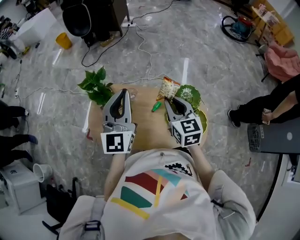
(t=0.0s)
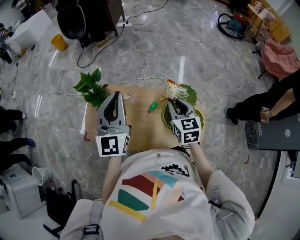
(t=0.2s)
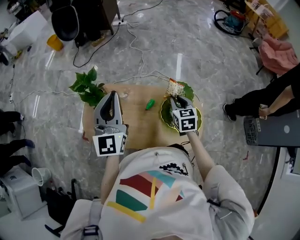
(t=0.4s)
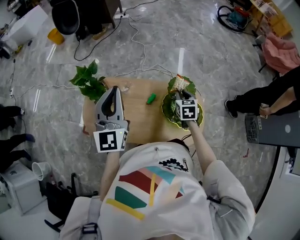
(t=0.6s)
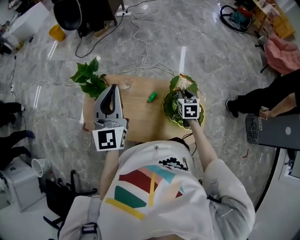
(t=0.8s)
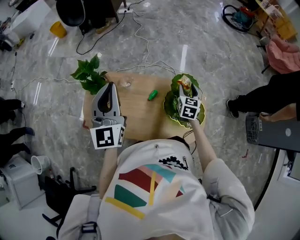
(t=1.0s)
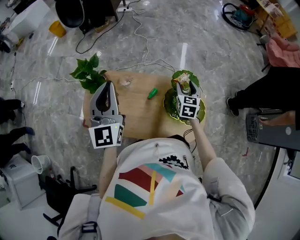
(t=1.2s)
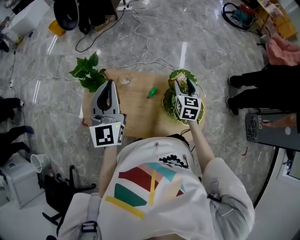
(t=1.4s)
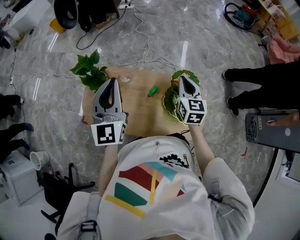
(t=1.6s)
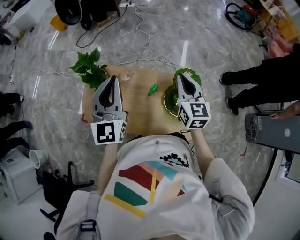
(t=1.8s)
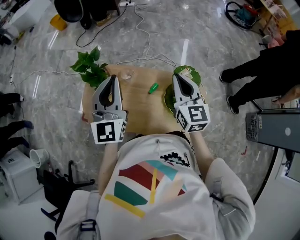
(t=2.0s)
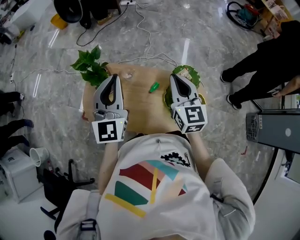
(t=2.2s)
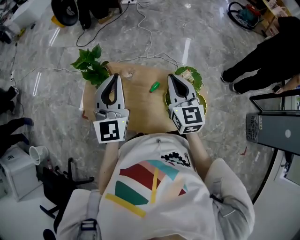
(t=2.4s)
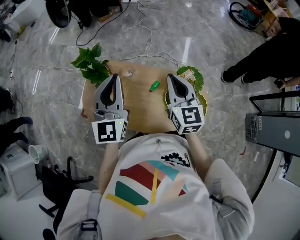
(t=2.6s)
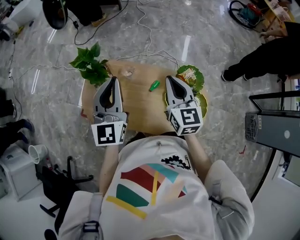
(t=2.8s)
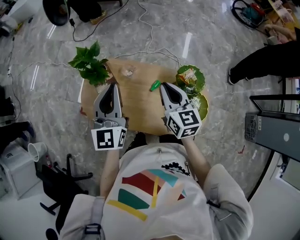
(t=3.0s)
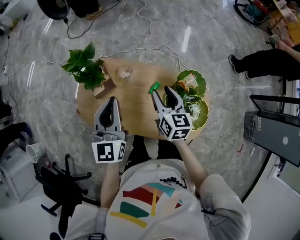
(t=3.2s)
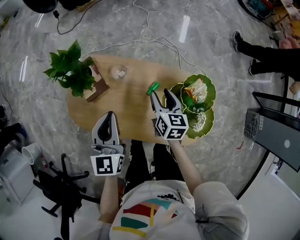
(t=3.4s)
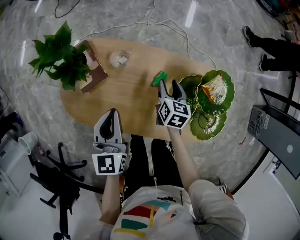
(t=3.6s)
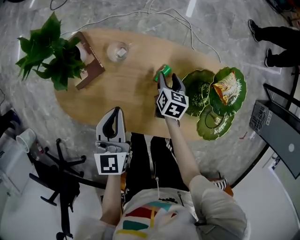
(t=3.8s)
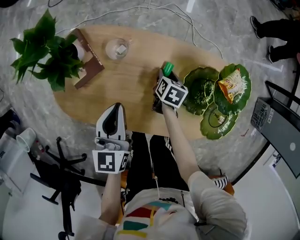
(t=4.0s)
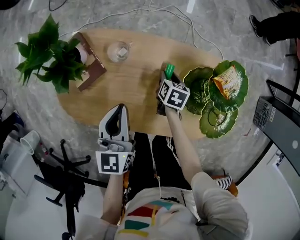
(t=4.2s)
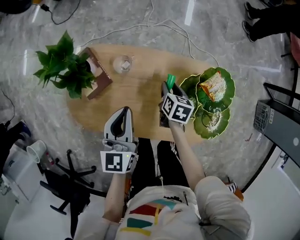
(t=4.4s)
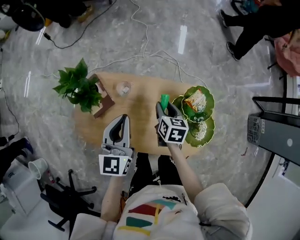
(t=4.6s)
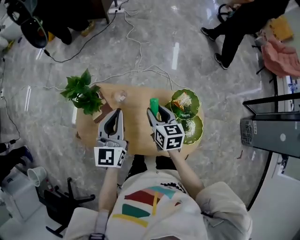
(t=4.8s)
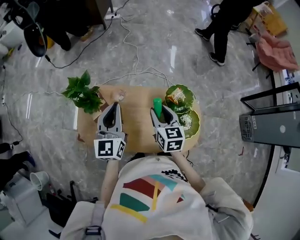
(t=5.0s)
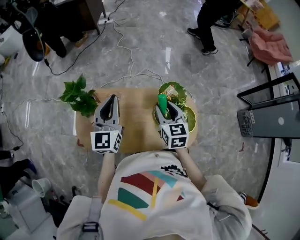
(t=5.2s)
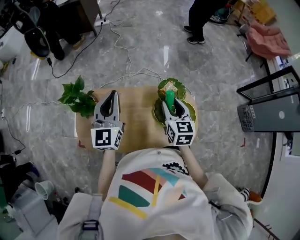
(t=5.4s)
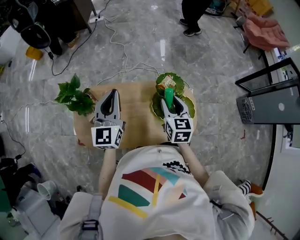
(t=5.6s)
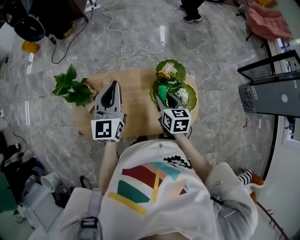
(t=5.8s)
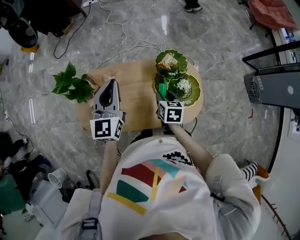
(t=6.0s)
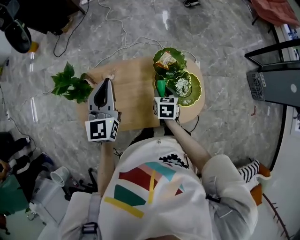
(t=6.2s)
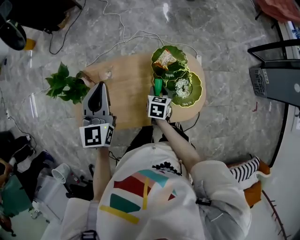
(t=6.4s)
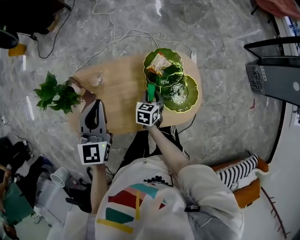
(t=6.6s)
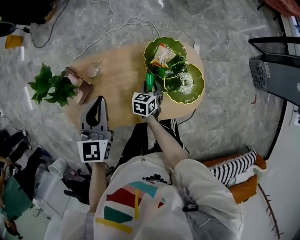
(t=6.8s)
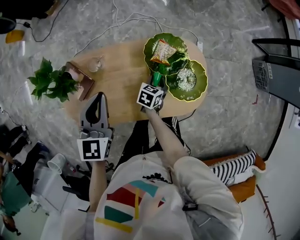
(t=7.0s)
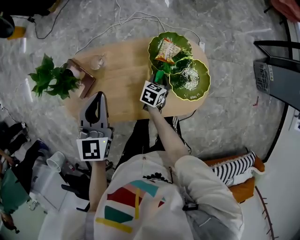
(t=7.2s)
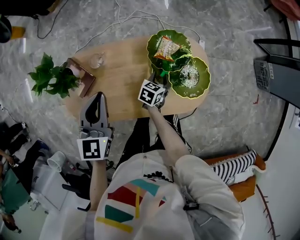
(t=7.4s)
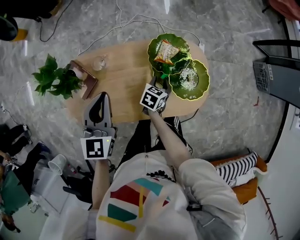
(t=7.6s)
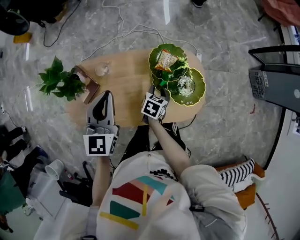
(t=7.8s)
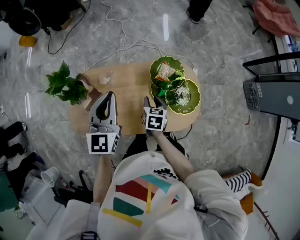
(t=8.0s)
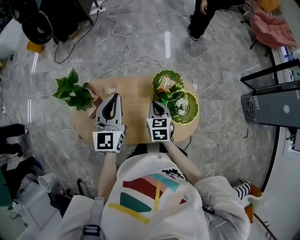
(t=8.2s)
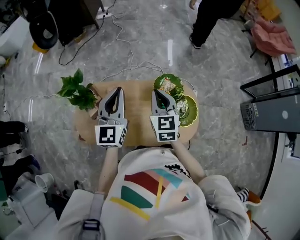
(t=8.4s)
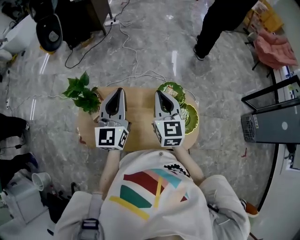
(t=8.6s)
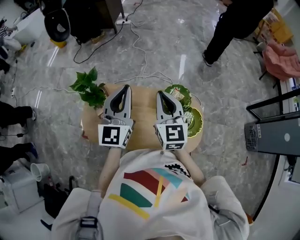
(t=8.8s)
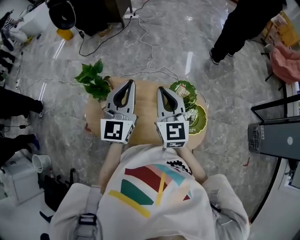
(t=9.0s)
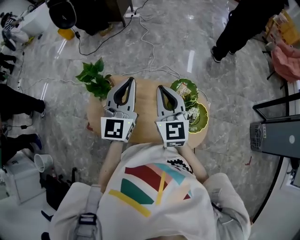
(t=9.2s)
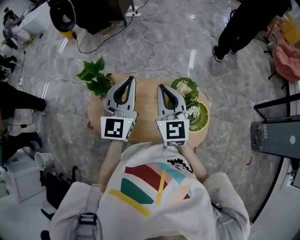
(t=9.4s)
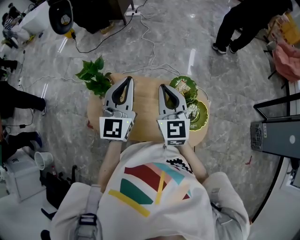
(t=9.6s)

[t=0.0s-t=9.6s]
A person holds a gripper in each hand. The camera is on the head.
t=0.0s to t=1.6s: The right gripper heads to the right and forward, covering approximately 10 cm, reaches approximately 20 cm downward, then returns, and opens, then closes again.
t=1.6s to t=3.2s: The left gripper moves downward, some 10 cm, while the right gripper is displaced to the left and downward by about 15 cm, and opens its fingers.
t=3.2s to t=4.8s: The left gripper reaches some 25 cm downward, then returns. Meanwhile the right gripper reaches some 40 cm downward, then returns.
t=4.8s to t=6.4s: The right gripper heads downward and to the right, covering about 20 cm, and swivels roughly 40 degrees. Meanwhile the left gripper is displaced to the right by some 5 cm.
t=6.4s to t=8.0s: The right gripper travels downward and back again, roughly 10 cm each way, while the left gripper goes downward and returns, about 10 cm each way.
t=8.0s to t=9.6s: The right gripper shifts approximately 30 cm upward, tilts its fingers some 50 degrees upward, and closes. Meanwhile the left gripper travels upward by about 10 cm.

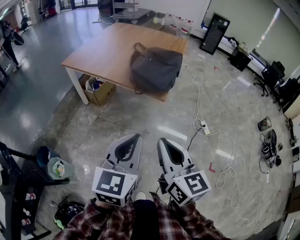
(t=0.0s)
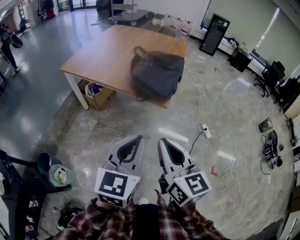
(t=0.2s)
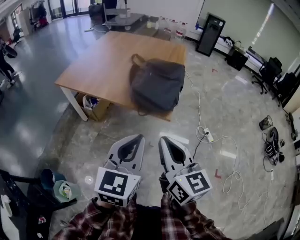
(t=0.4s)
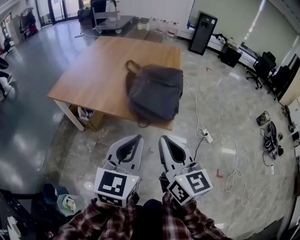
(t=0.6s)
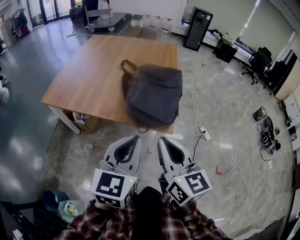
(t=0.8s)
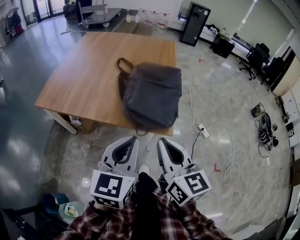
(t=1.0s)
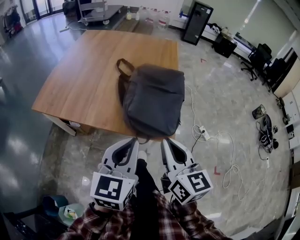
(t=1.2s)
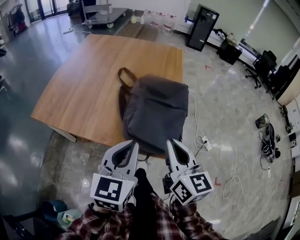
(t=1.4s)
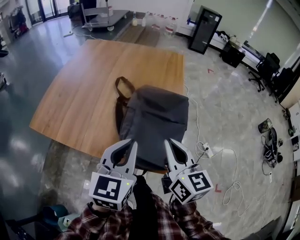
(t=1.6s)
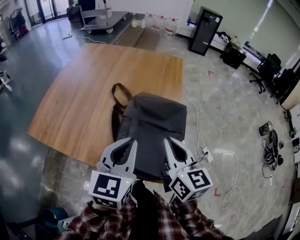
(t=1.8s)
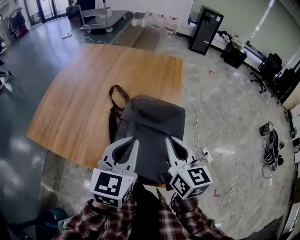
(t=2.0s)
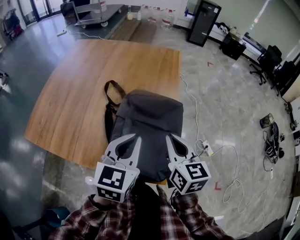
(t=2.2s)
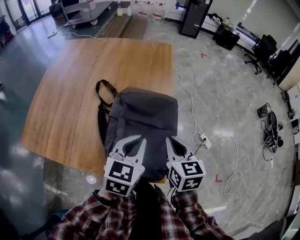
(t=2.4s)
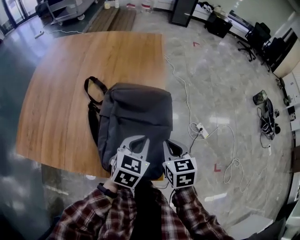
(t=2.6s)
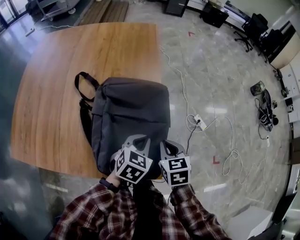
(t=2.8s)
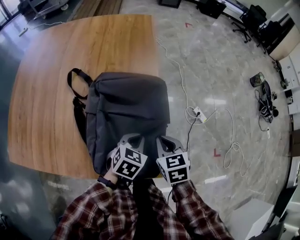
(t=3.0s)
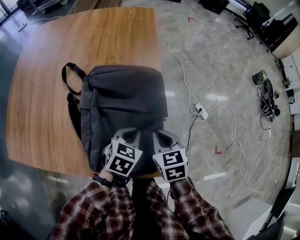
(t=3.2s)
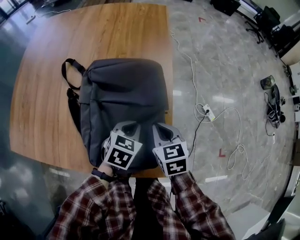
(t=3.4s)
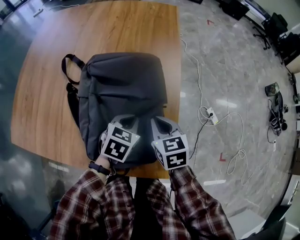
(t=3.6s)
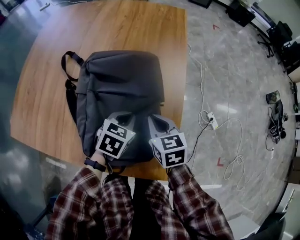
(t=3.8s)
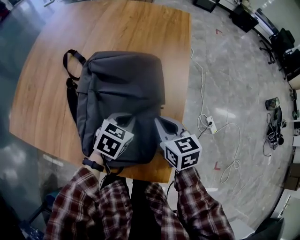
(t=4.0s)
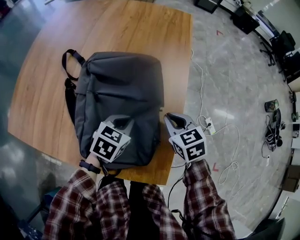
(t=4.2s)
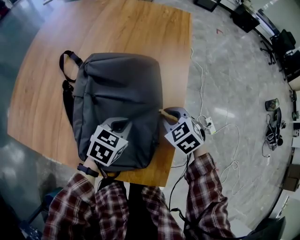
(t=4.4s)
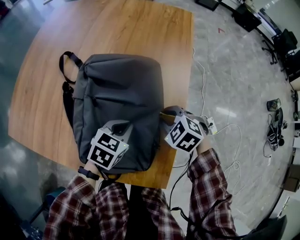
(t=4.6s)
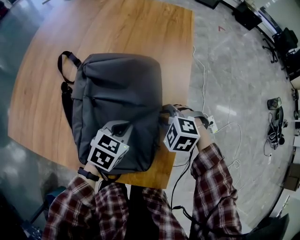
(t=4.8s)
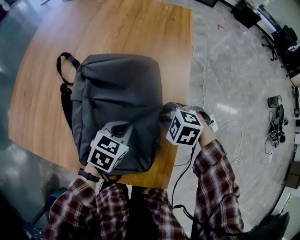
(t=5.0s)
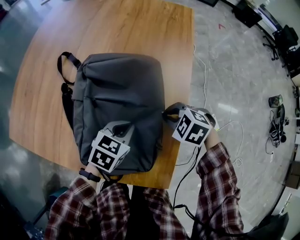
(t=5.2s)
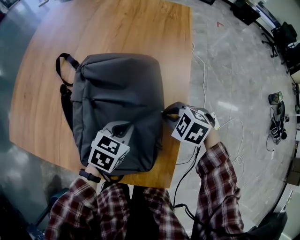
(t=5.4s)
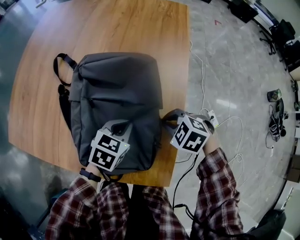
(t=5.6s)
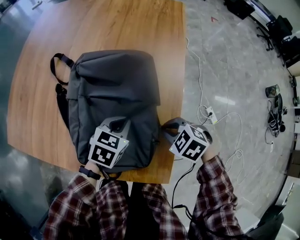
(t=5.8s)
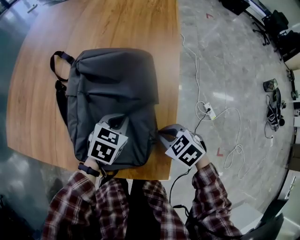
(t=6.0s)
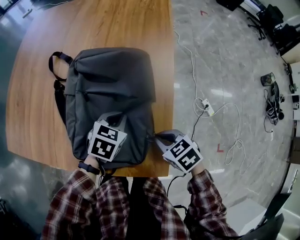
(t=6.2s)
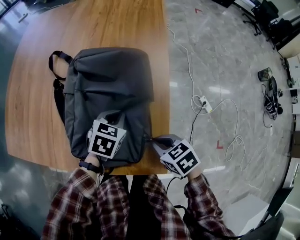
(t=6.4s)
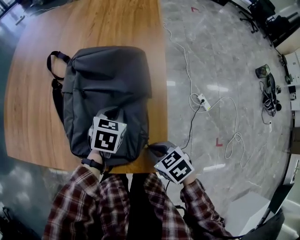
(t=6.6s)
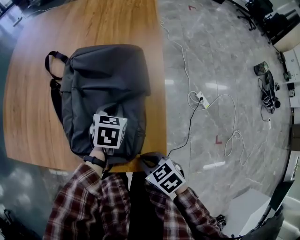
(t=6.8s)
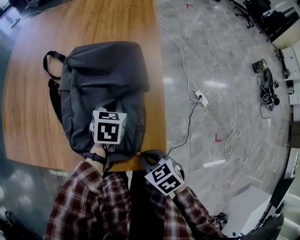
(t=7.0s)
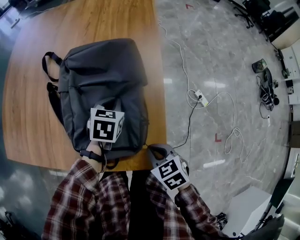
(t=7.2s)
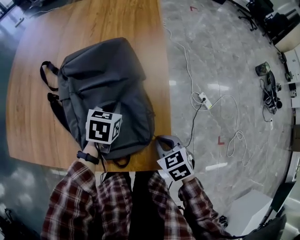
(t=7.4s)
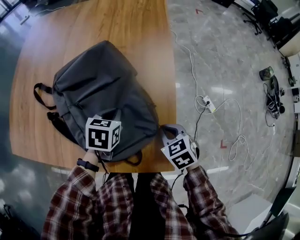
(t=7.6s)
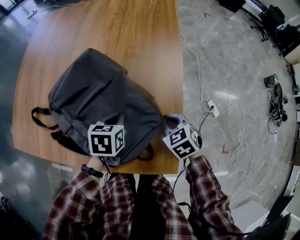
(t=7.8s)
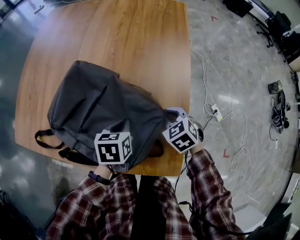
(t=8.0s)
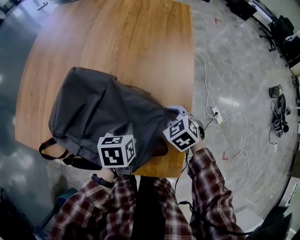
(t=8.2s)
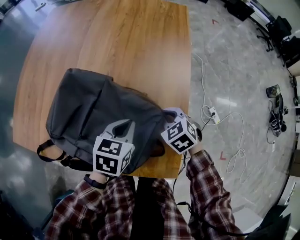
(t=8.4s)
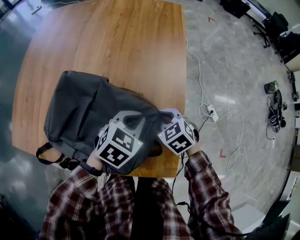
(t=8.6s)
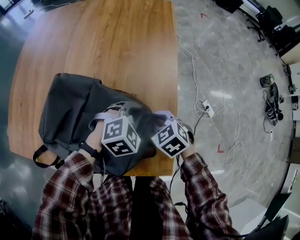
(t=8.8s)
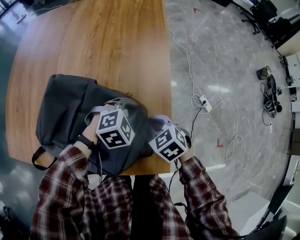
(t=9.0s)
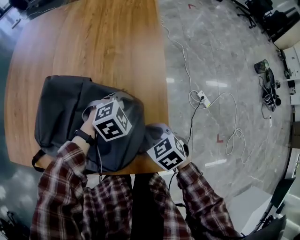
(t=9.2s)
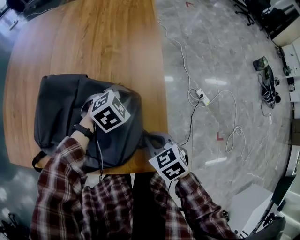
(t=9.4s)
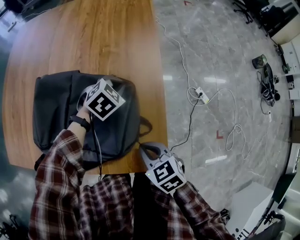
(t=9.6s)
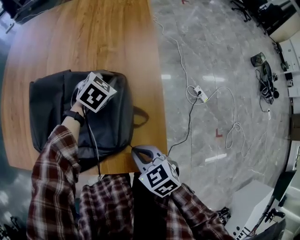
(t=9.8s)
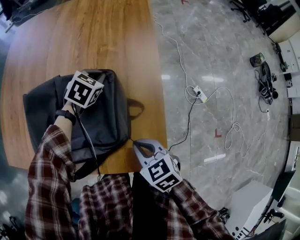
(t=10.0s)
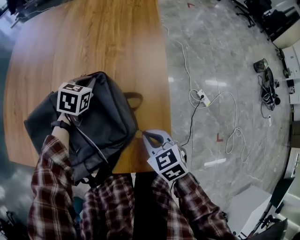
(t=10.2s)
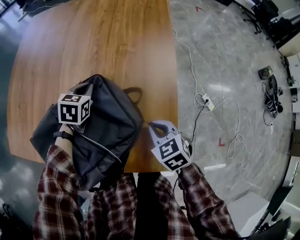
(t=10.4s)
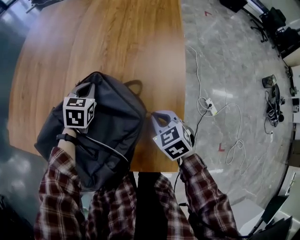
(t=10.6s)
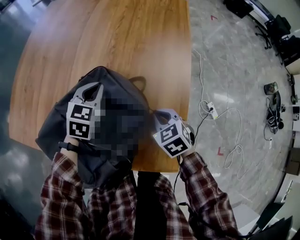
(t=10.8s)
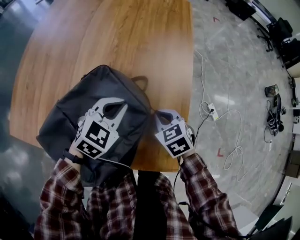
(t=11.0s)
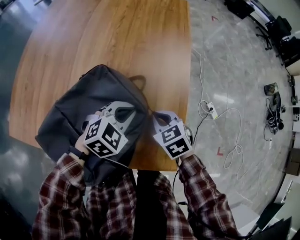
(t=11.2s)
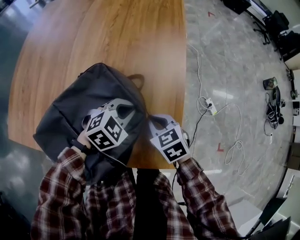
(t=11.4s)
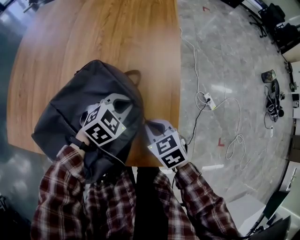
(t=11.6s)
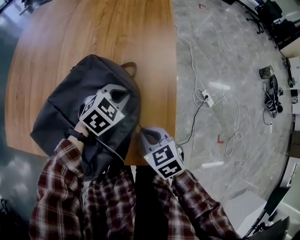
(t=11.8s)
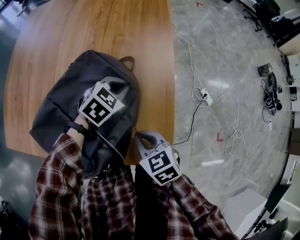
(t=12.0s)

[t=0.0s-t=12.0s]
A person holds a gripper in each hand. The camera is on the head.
t=0.0s to t=1.6s: The pair of grippers is taken forward, approximately 50 cm.
t=1.6s to t=3.0s: The left gripper is displaced downward, to the right and forward by some 35 cm, and tilts its fingers some 30 degrees downward; the right gripper heads downward, forward and to the right, covering some 30 cm, and points its fingers about 40 degrees further downward.
t=3.0s to t=4.4s: The left gripper travels to the left and forward by about 15 cm; the right gripper moves forward and to the left, approximately 15 cm, and turns by about 40 degrees.
t=4.4s to t=6.0s: The right gripper moves backward, approximately 10 cm.
t=6.0s to t=7.6s: The right gripper reaches about 10 cm backward, then returns, and rotates about 20 degrees.
t=7.6s to t=9.0s: The left gripper travels to the right by approximately 10 cm, and rotates around the line of its fingers by about 60 degrees, clockwise from behind.
t=9.0s to t=10.4s: The right gripper travels backward and back again, about 10 cm each way; the left gripper heads to the left and forward, covering about 25 cm, and twists roughly 50 degrees counterclockwise, seen from behind.
t=10.4s to t=12.0s: The left gripper heads to the right and backward, covering some 15 cm, and changes its angle by some 40 degrees. Meanwhile the right gripper travels backward by approximately 5 cm.

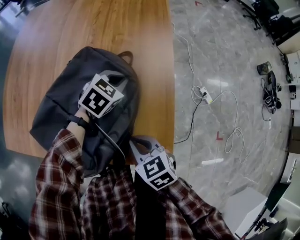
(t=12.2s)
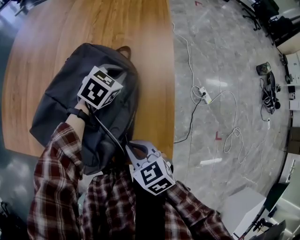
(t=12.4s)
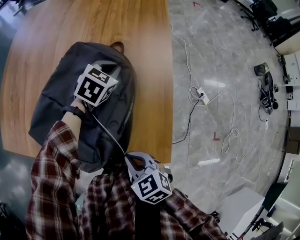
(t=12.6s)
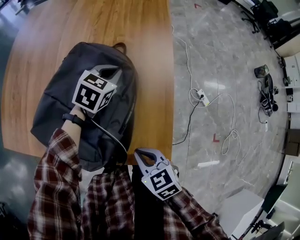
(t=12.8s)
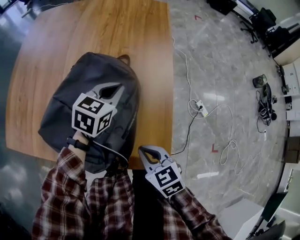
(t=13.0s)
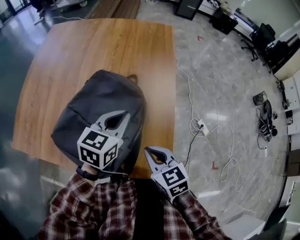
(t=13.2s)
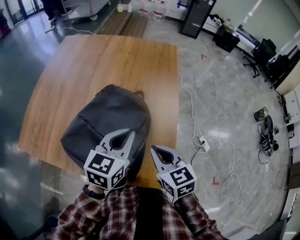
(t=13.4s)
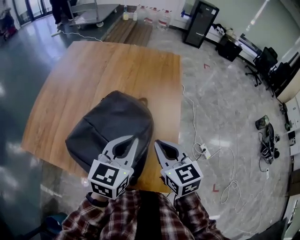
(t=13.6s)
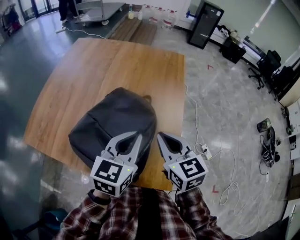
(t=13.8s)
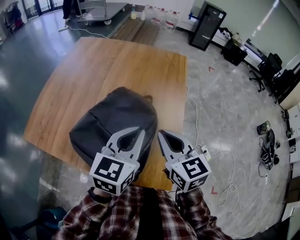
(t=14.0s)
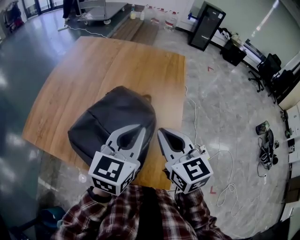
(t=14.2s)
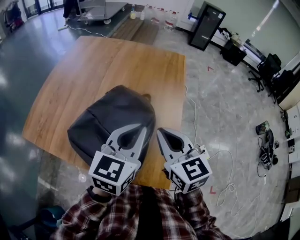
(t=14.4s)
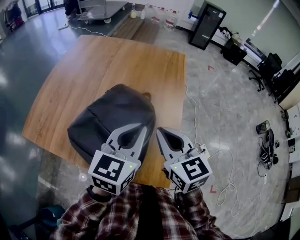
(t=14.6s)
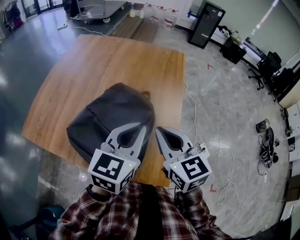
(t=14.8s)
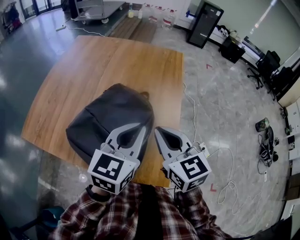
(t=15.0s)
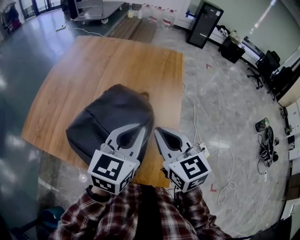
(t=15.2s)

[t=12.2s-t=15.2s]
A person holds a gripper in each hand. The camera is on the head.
t=12.2s to t=13.8s: The right gripper travels upward by roughly 20 cm, and turns by approximately 30 degrees, while the left gripper moves upward and backward, roughly 30 cm, and tilts its fingers roughly 30 degrees upward.
t=13.8s to t=15.2s: The grippers move only a little.
